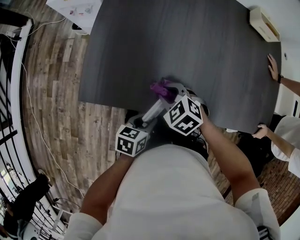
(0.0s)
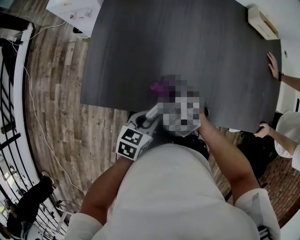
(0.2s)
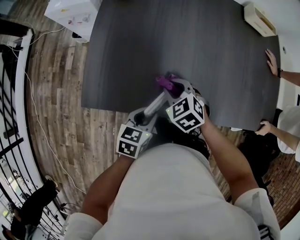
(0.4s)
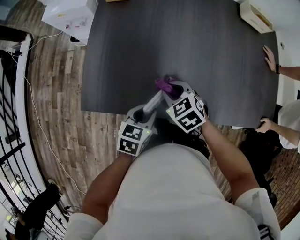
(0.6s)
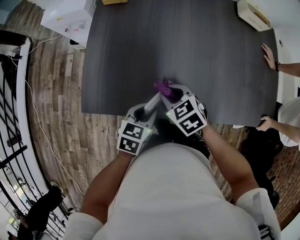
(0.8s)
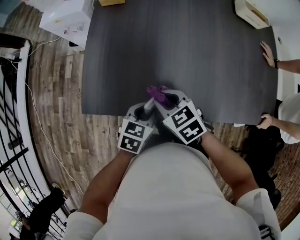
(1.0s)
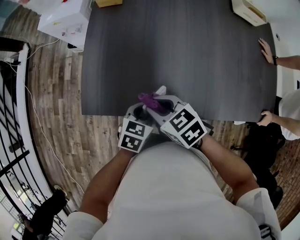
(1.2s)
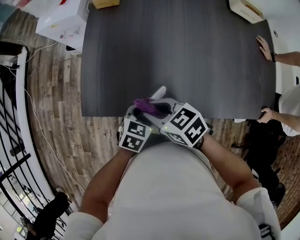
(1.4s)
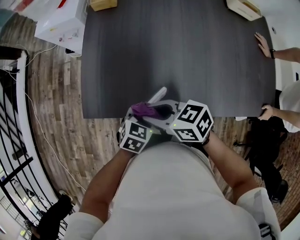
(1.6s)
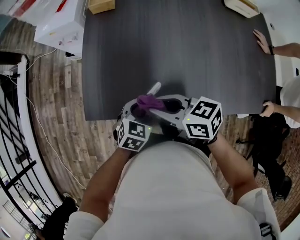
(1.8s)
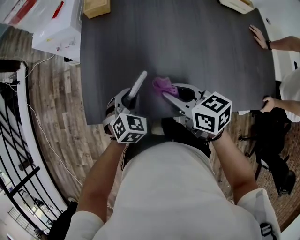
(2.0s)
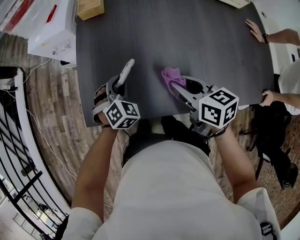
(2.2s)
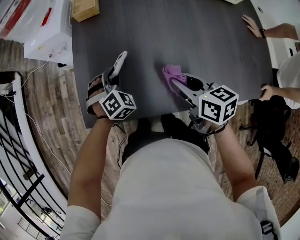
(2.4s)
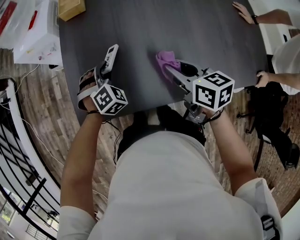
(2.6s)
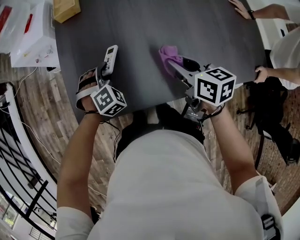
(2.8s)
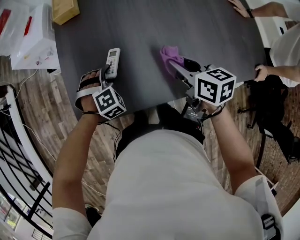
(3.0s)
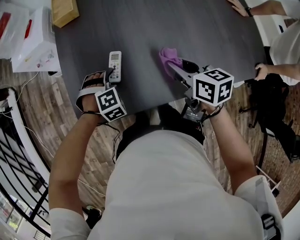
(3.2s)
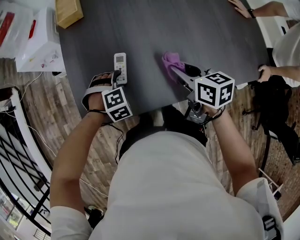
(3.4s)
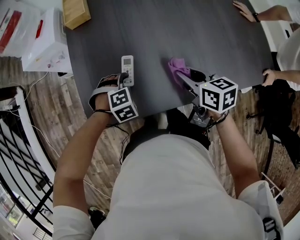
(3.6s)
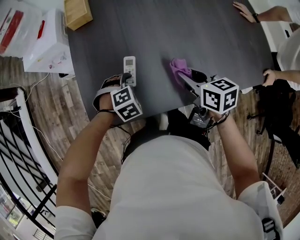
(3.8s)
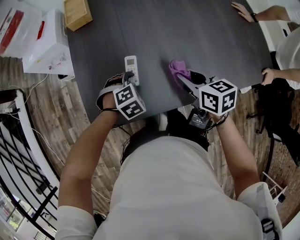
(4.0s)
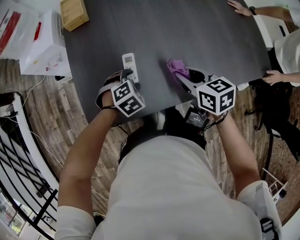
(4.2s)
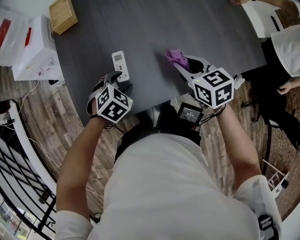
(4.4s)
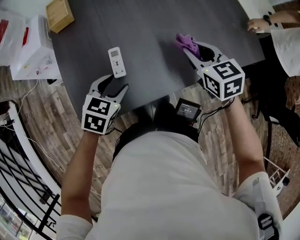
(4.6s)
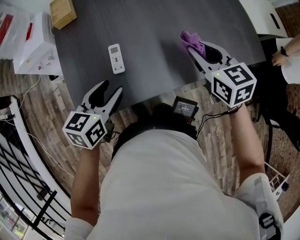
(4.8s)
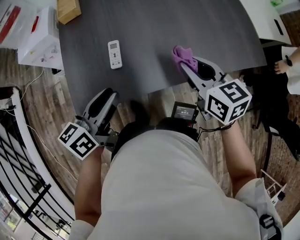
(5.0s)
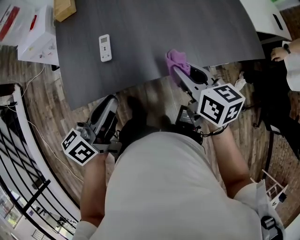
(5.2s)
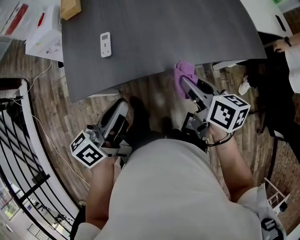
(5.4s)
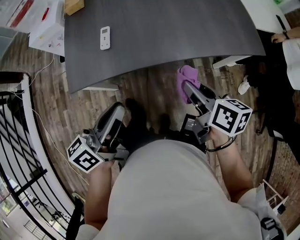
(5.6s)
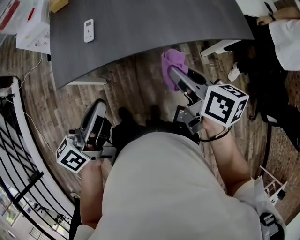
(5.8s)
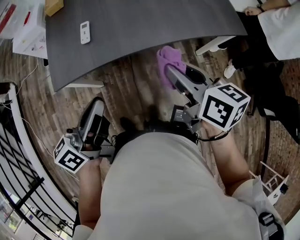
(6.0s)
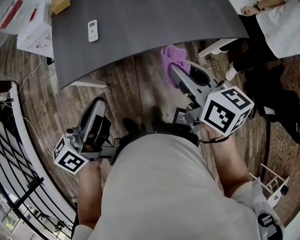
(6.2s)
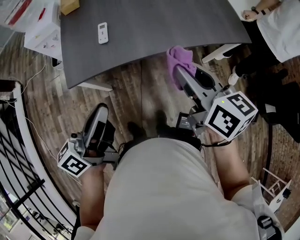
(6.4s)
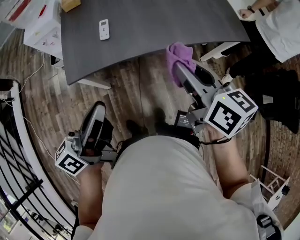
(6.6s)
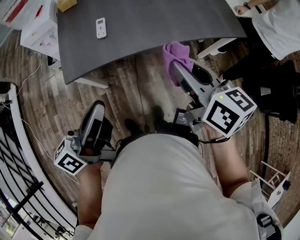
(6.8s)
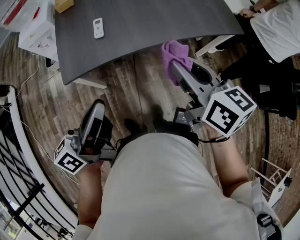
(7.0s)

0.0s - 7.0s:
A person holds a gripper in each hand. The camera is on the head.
0.0s - 1.4s: The left gripper goes some 5 cm forward, and turns by about 30 degrees, while the right gripper is displaced upward by some 10 cm, and rotates approximately 40 degrees.
1.4s - 2.8s: The right gripper travels to the right by about 20 cm, and turns by roughly 40 degrees. The left gripper is displaced forward by about 15 cm, and rolls clockwise, seen from behind, by about 60 degrees.
2.8s - 4.2s: The left gripper changes place by approximately 5 cm, swivels some 30 degrees, and opens up.
4.2s - 5.6s: The right gripper is displaced backward and to the right by approximately 25 cm, and rotates approximately 30 degrees. Meanwhile the left gripper moves backward, upward and to the right, about 35 cm, angles its fingers upward, by some 60 degrees, and closes.
5.6s - 7.0s: The right gripper moves upward, to the left and backward, some 15 cm, and swivels about 20 degrees. The left gripper heads backward and to the left, covering some 10 cm.

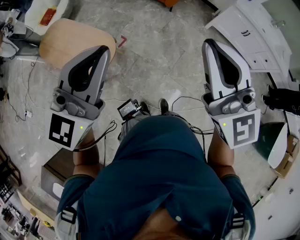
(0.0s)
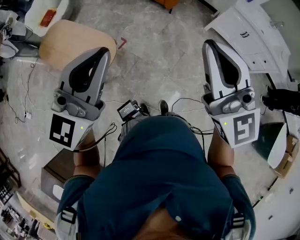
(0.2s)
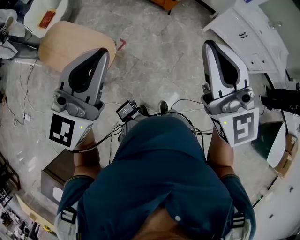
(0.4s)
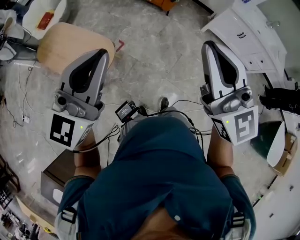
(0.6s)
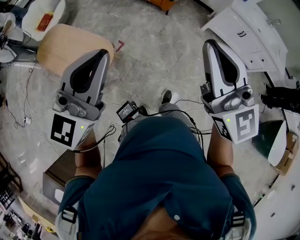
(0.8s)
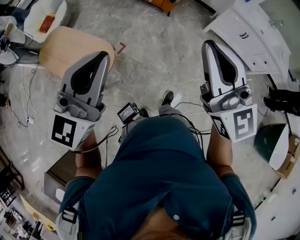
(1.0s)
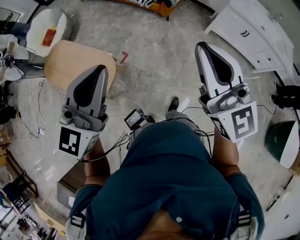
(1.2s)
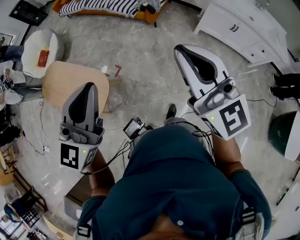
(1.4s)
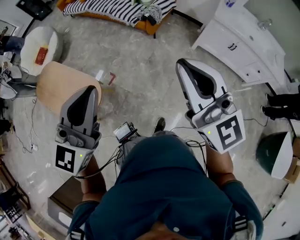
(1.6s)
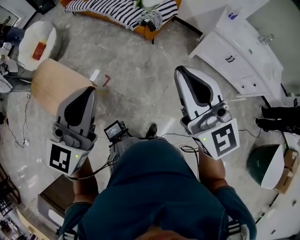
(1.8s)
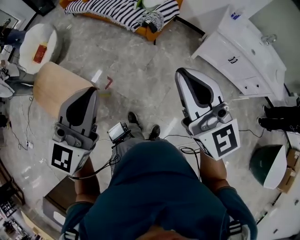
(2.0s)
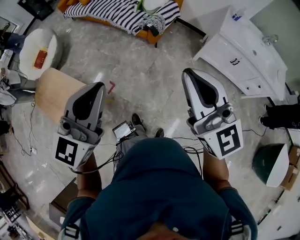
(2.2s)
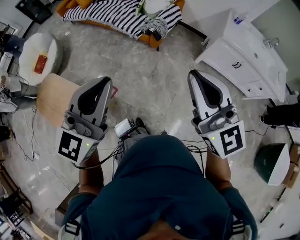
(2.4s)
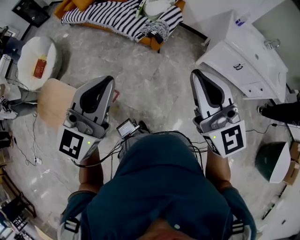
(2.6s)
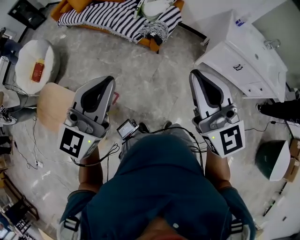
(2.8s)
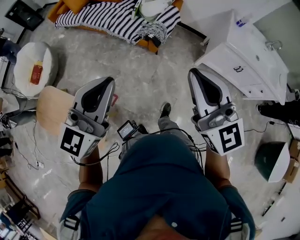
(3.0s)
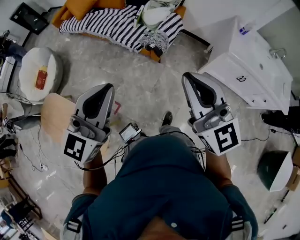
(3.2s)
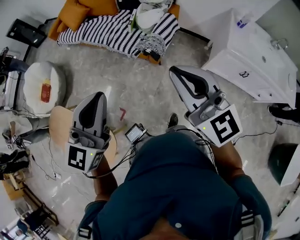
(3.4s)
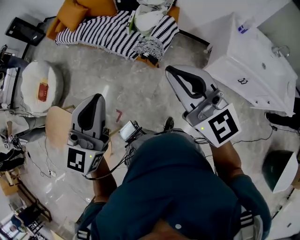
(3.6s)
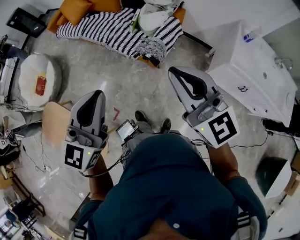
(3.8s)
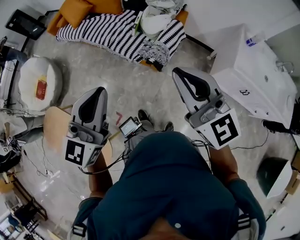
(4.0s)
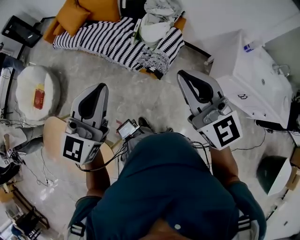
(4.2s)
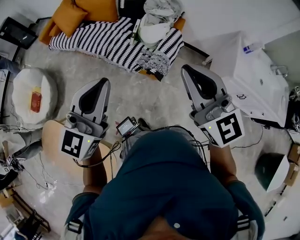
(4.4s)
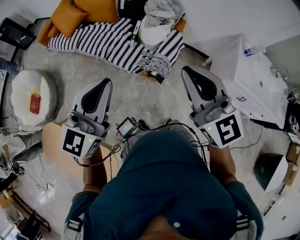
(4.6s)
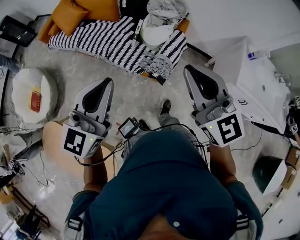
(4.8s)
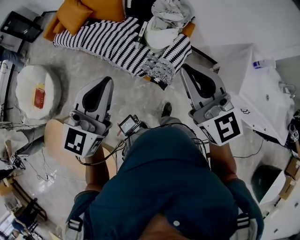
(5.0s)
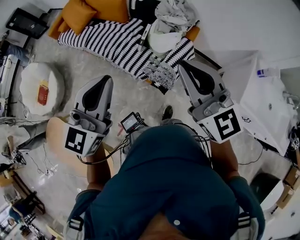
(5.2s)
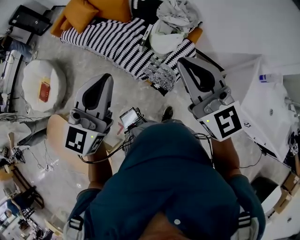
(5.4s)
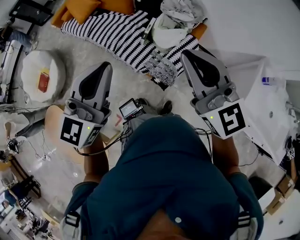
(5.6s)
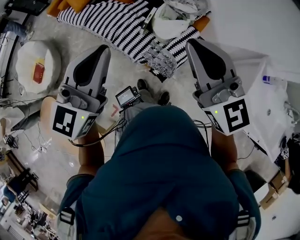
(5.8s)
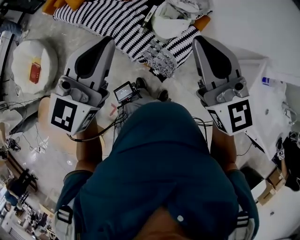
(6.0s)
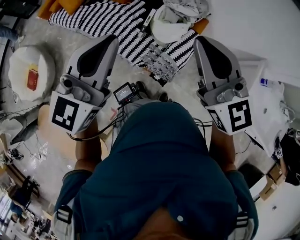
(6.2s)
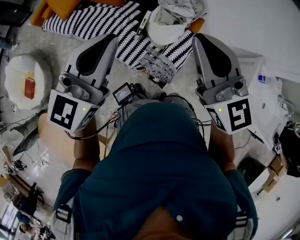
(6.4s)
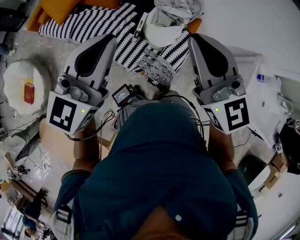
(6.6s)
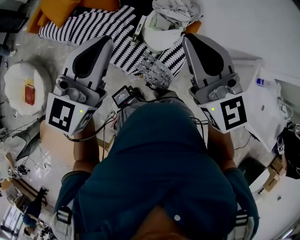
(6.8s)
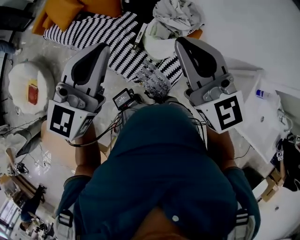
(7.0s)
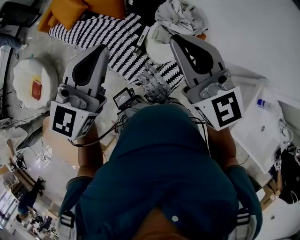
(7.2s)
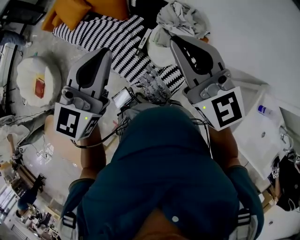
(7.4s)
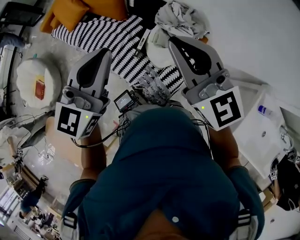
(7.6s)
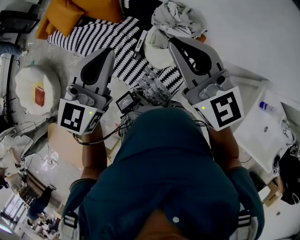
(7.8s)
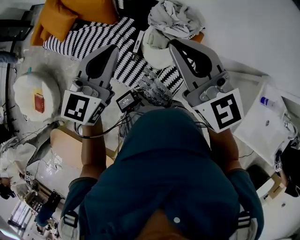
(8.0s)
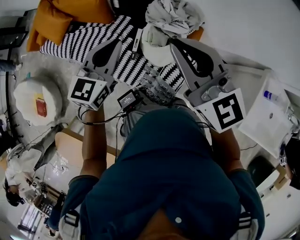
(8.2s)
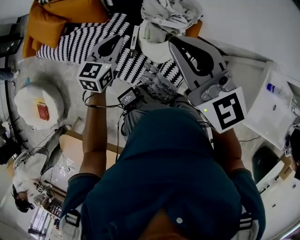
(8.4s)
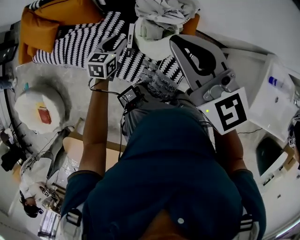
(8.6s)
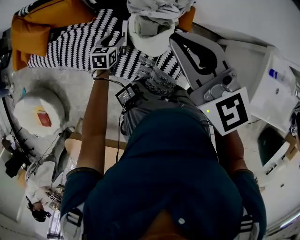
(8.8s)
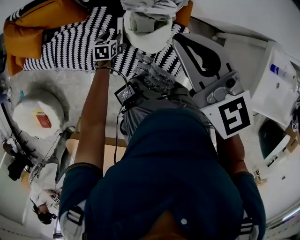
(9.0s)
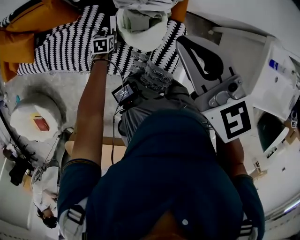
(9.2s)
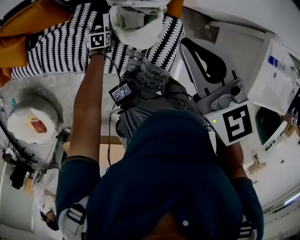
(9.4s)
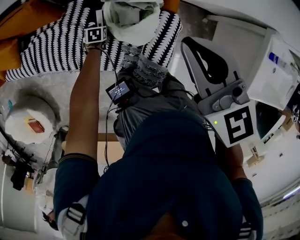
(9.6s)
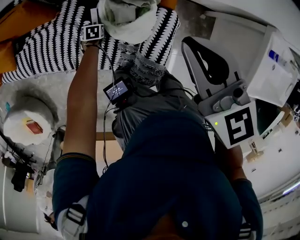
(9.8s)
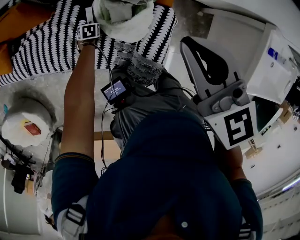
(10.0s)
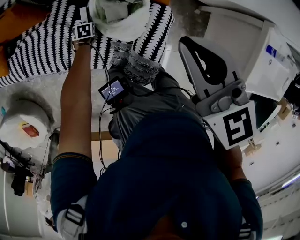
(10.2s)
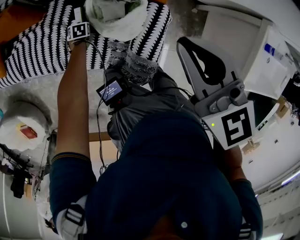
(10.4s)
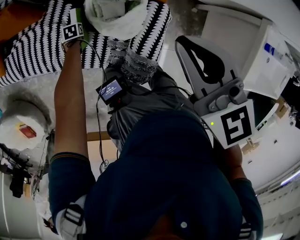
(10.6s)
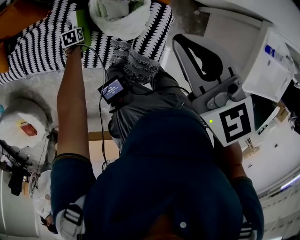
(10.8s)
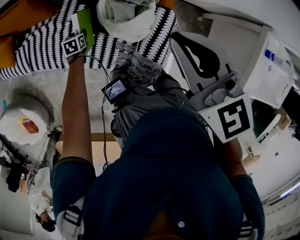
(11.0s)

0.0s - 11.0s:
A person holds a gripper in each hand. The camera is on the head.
0.0s - 1.6s: Both grippers move to the right and forward, about 20 cm.
1.6s - 3.2s: The grippers both shift forward by roughly 40 cm.
3.2s - 4.8s: Both grippers move forward, some 35 cm.
4.8s - 6.2s: Both grippers travel together forward, some 25 cm.
6.2s - 7.8s: The right gripper moves forward, some 20 cm. Meanwhile the left gripper moves forward and to the right, some 20 cm.
7.8s - 9.4s: The right gripper shifts about 20 cm downward and forward, and rotates about 30 degrees. The left gripper heads downward, covering some 60 cm, tips its fingers downward by some 60 degrees, and opens.
9.4s - 11.0s: The left gripper reaches about 10 cm downward, then returns.

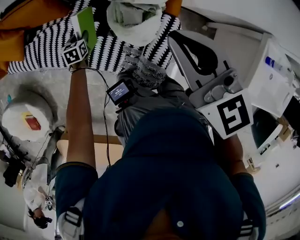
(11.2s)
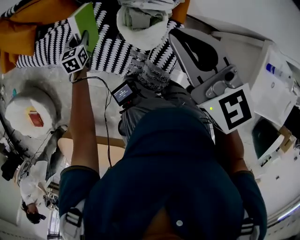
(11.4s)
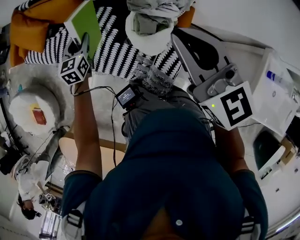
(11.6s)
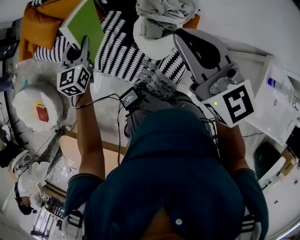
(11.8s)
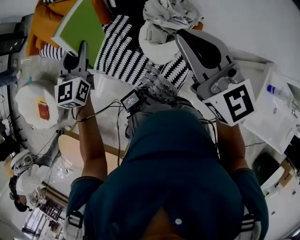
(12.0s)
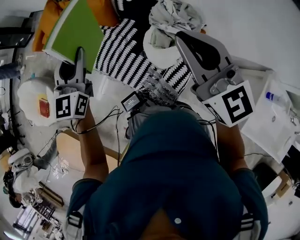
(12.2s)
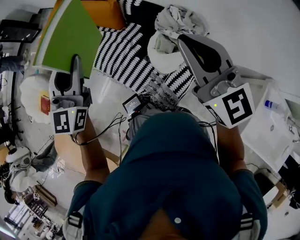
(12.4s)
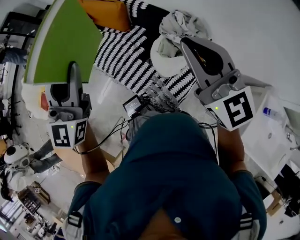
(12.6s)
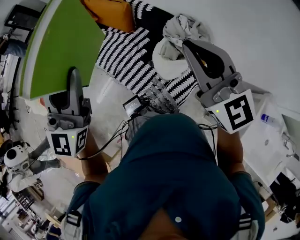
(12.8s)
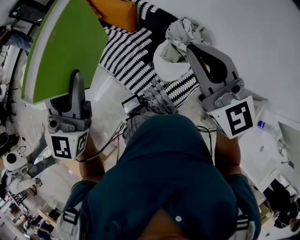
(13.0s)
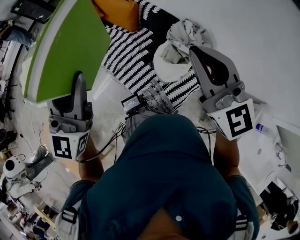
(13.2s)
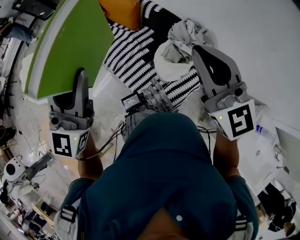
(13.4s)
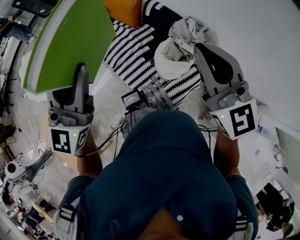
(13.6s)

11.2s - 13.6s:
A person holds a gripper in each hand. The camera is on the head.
11.2s - 12.4s: The left gripper is displaced upward by about 60 cm, and angles its fingers upward, by approximately 60 degrees. The right gripper travels upward by about 15 cm, and swivels some 30 degrees.
12.4s - 13.6s: The left gripper heads backward and upward, covering roughly 15 cm.

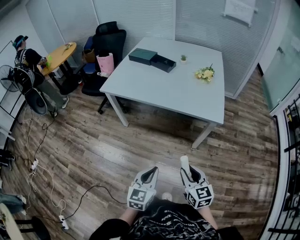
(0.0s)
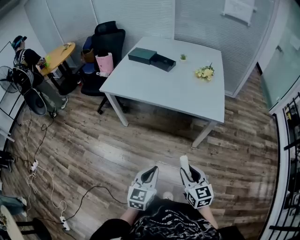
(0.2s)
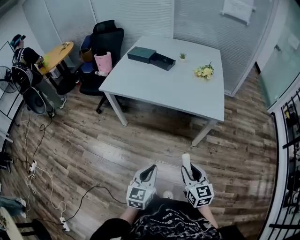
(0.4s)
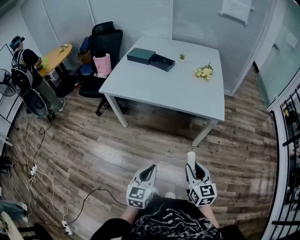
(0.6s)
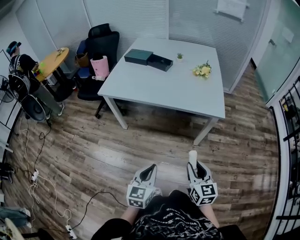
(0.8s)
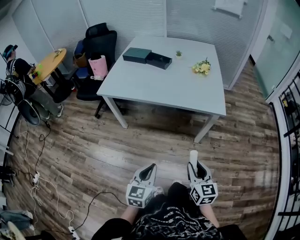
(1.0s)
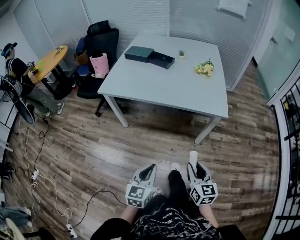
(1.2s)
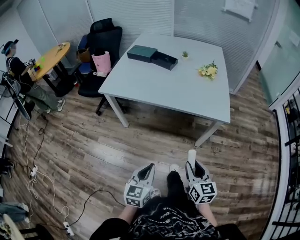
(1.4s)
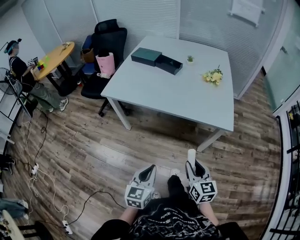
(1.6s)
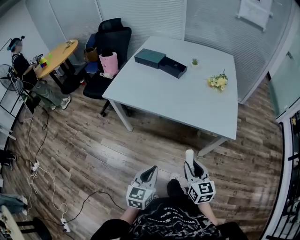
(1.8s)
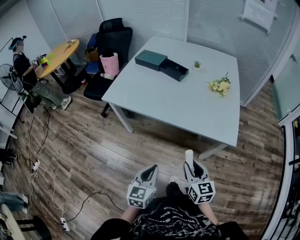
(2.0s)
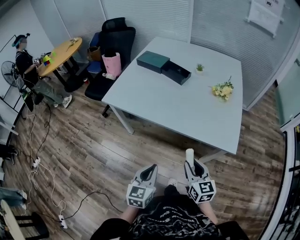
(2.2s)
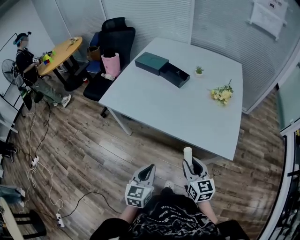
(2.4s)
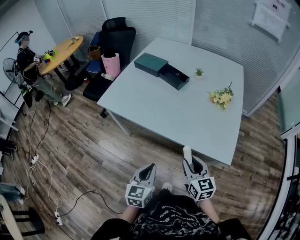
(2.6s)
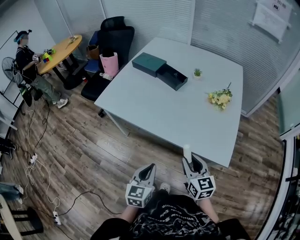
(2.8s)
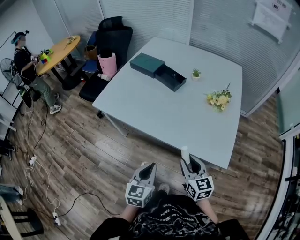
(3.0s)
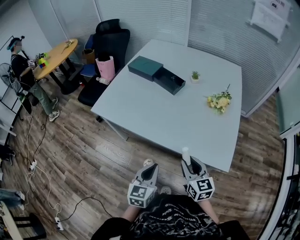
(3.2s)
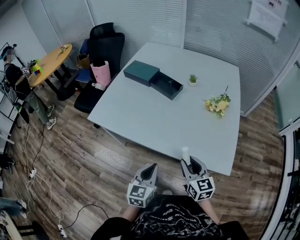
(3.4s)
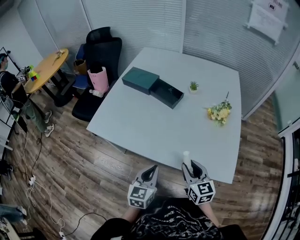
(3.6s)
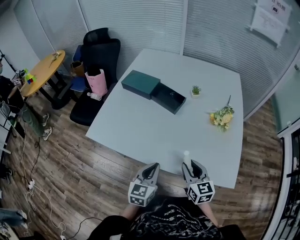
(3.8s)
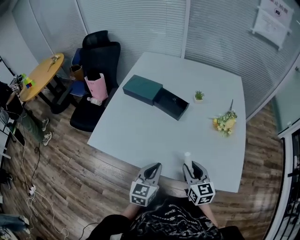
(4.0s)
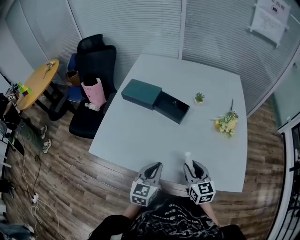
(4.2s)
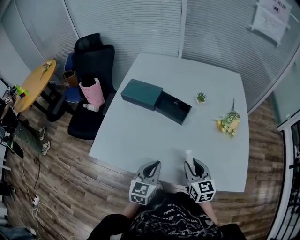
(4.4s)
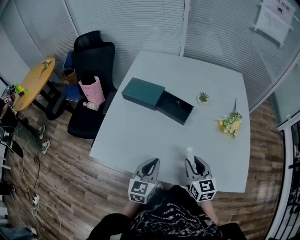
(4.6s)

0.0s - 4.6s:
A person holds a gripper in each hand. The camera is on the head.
0.0s - 1.6s: The left gripper travels forward and to the left by some 10 cm, while the right gripper shifts approximately 10 cm forward.
1.6s - 3.0s: The right gripper moves forward, approximately 25 cm, while the left gripper heads forward and to the right, covering roughly 25 cm.
3.0s - 4.6s: The grippers both shift forward and to the left by about 30 cm.
